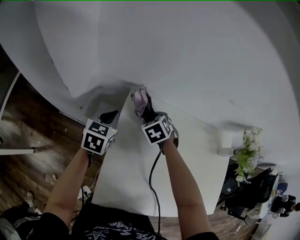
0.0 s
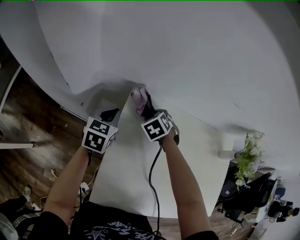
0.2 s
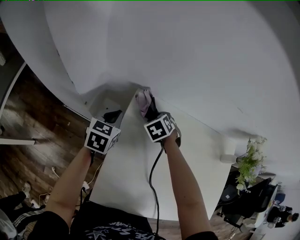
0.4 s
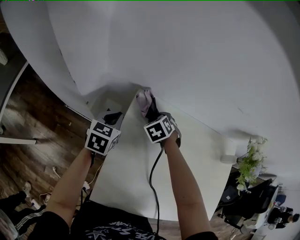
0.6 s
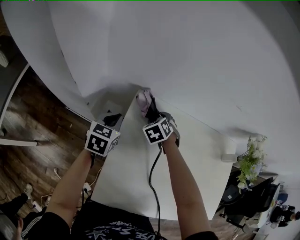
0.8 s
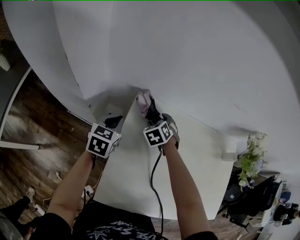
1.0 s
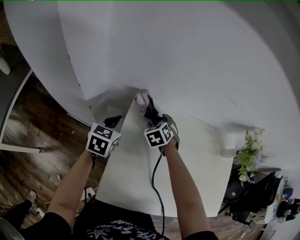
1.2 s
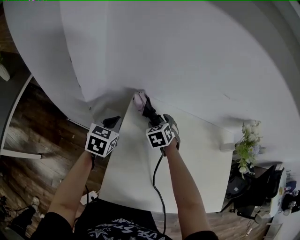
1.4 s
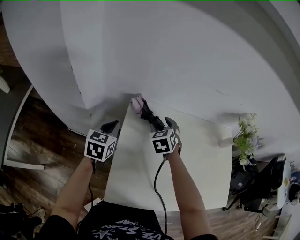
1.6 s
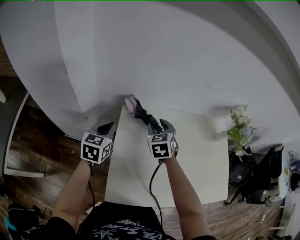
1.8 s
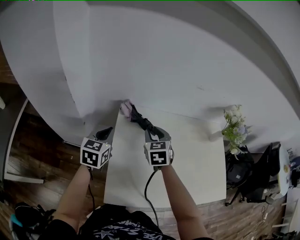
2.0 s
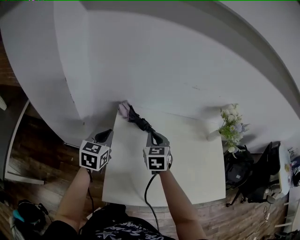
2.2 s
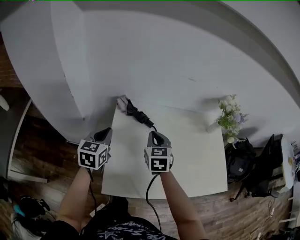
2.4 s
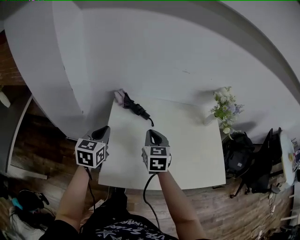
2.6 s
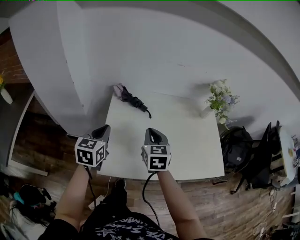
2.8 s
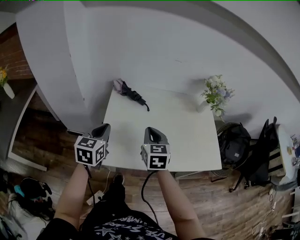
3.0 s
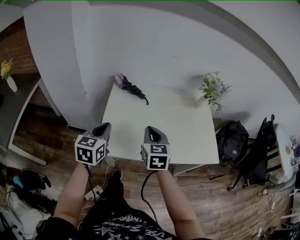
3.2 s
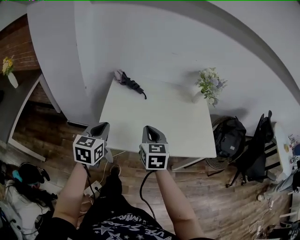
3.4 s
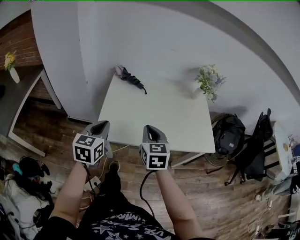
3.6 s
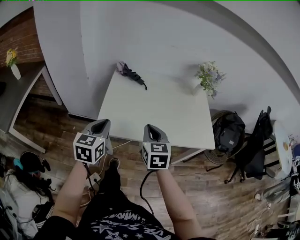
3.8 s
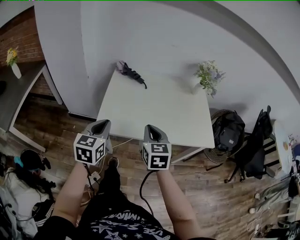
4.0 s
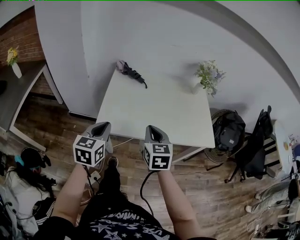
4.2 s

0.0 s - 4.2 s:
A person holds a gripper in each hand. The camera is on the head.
0.0 s - 1.4 s: The right gripper opens. The left gripper moves some 5 cm.
1.4 s - 2.8 s: Both grippers move backward, upward and to the right, some 25 cm. The right gripper turns by roughly 40 degrees, and closes its fingers.
2.8 s - 4.2 s: The two grippers go some 20 cm backward.

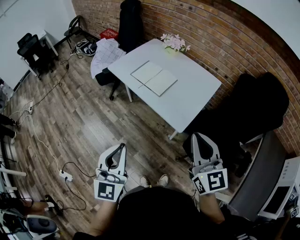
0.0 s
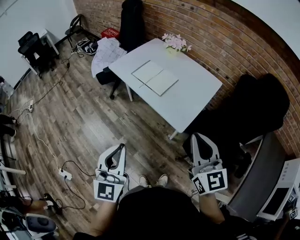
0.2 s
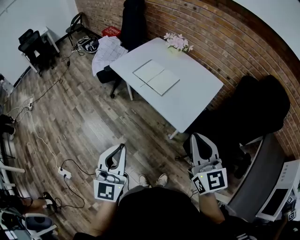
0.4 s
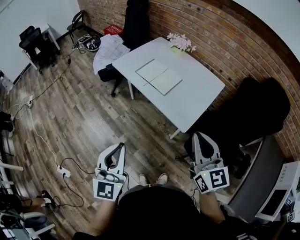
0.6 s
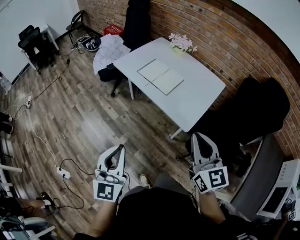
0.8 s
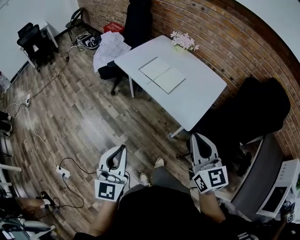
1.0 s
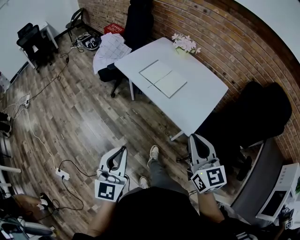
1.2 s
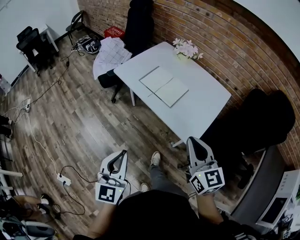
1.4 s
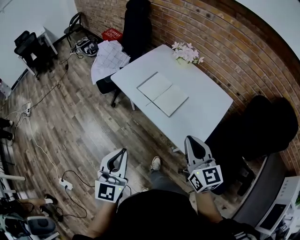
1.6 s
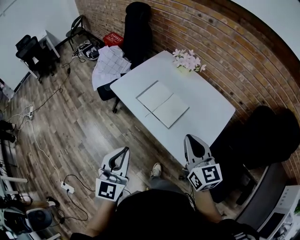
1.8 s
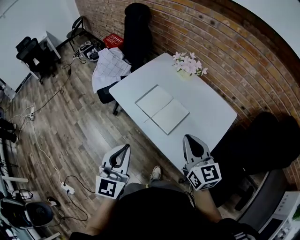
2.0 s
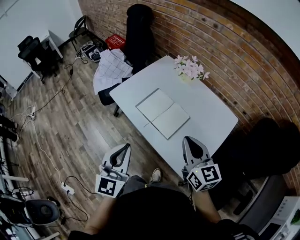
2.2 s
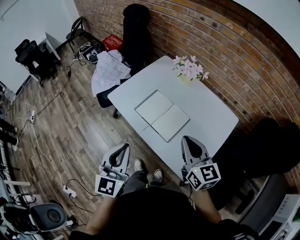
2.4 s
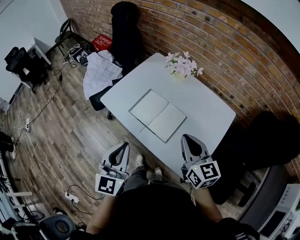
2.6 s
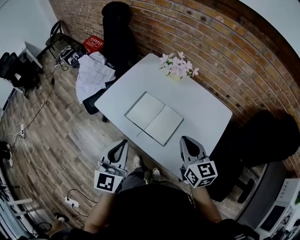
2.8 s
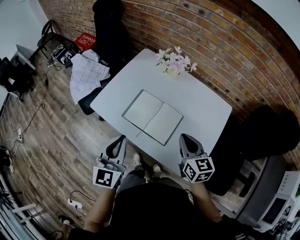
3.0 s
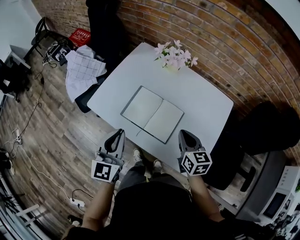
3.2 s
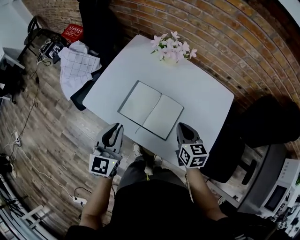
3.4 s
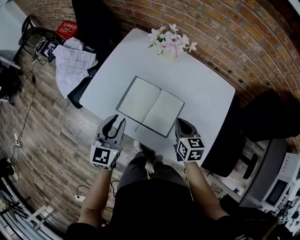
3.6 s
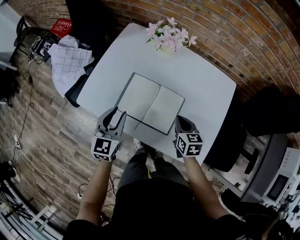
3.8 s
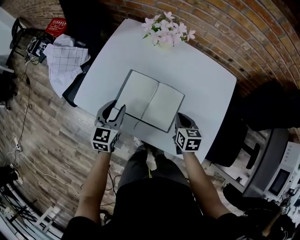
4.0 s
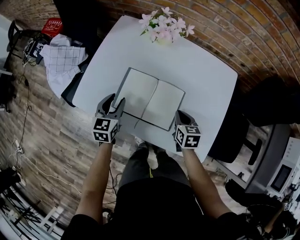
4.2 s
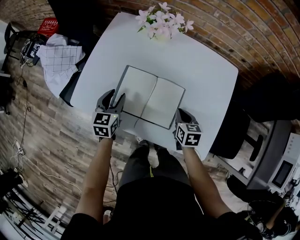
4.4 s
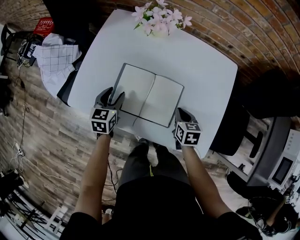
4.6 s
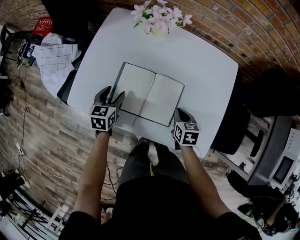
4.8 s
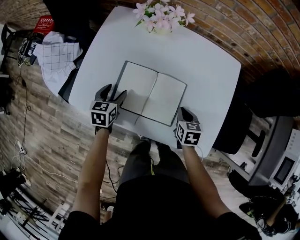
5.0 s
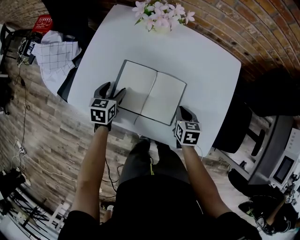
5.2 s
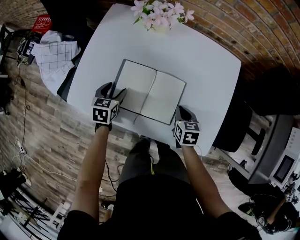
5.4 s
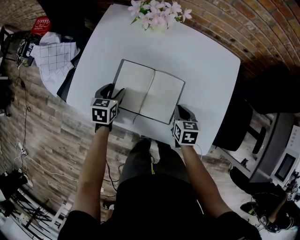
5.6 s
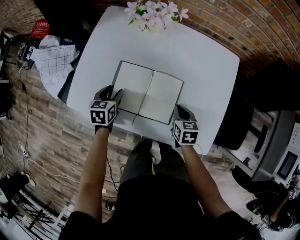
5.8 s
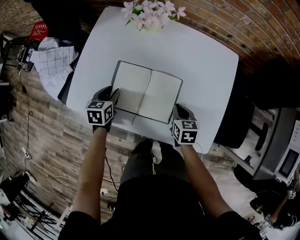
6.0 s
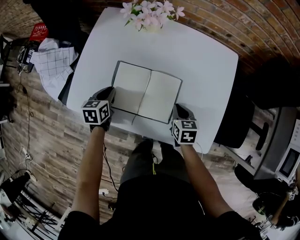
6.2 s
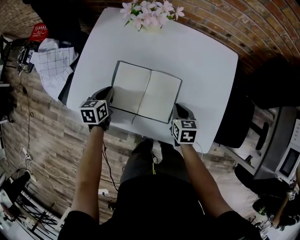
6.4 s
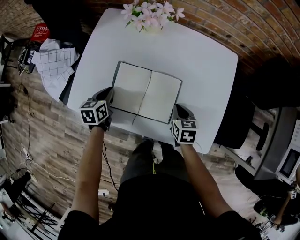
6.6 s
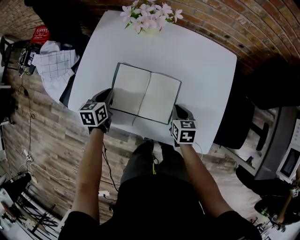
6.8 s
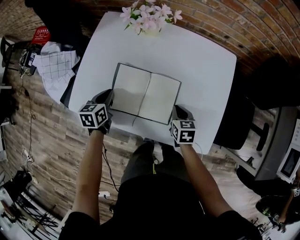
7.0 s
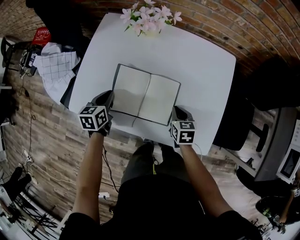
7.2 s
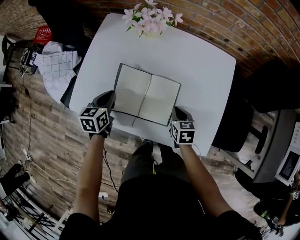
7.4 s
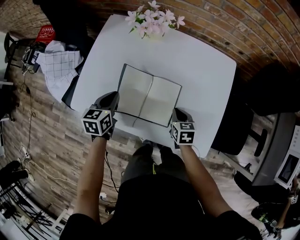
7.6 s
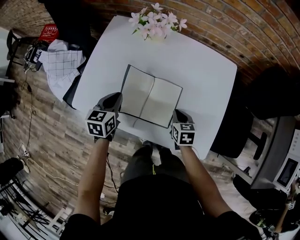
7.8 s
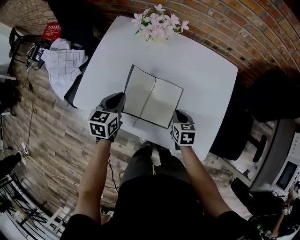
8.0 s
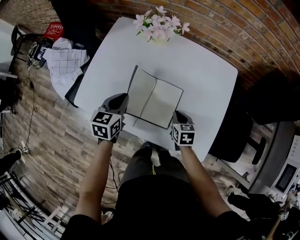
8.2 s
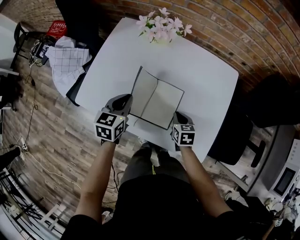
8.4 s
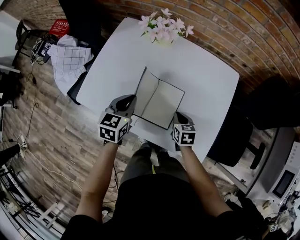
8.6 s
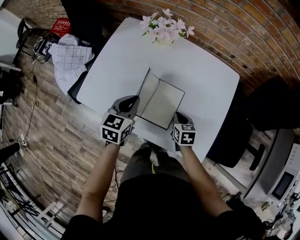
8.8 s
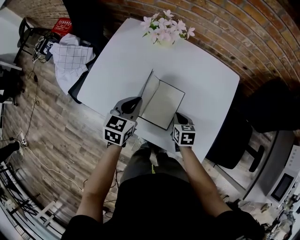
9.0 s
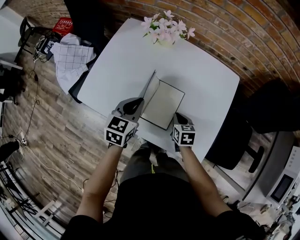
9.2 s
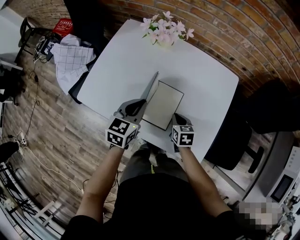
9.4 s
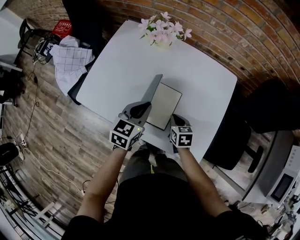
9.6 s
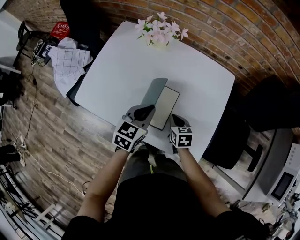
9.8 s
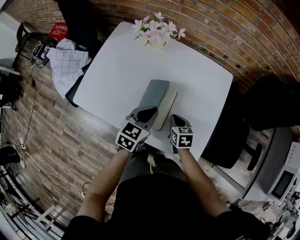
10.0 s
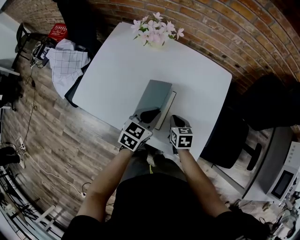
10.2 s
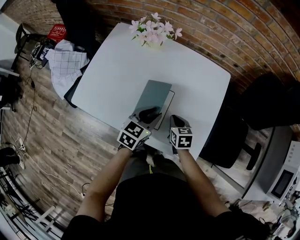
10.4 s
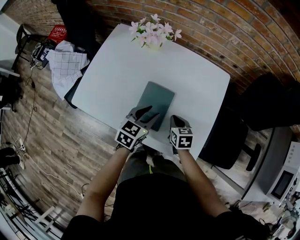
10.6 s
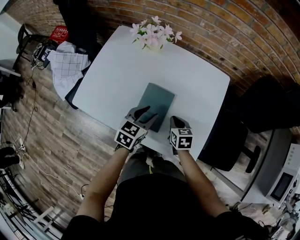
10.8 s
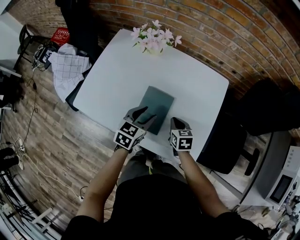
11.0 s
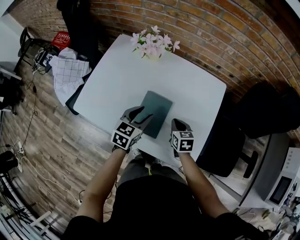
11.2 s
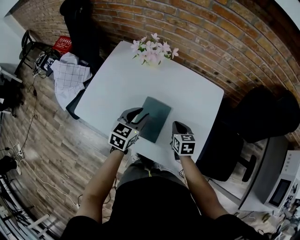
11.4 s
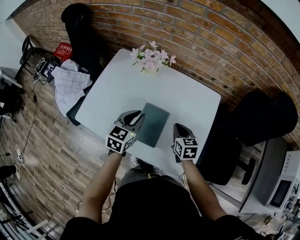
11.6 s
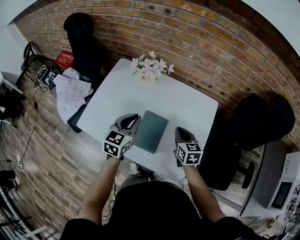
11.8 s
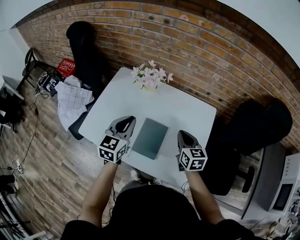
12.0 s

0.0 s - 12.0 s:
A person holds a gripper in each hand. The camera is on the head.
0.0 s - 1.6 s: Both grippers move forward and to the left, about 15 cm.
1.6 s - 3.0 s: The right gripper heads forward and downward, covering about 25 cm, and changes its angle by roughly 20 degrees; the left gripper shifts approximately 30 cm forward.
3.0 s - 4.4 s: The right gripper is displaced downward by roughly 20 cm, and turns by roughly 30 degrees. The left gripper is displaced downward and forward by roughly 30 cm, swivels about 30 degrees, and opens.
4.4 s - 6.0 s: The left gripper heads downward, covering about 5 cm, and opens, then closes once more.
6.0 s - 7.6 s: The left gripper travels upward by approximately 10 cm, and closes up.
7.6 s - 9.0 s: The left gripper heads to the right and upward, covering some 10 cm.
9.0 s - 10.4 s: The left gripper goes some 15 cm to the right.
10.4 s - 12.0 s: The left gripper is displaced upward and to the left by approximately 20 cm, and rotates roughly 30 degrees. Meanwhile the right gripper heads upward, covering roughly 20 cm, and turns by roughly 20 degrees.

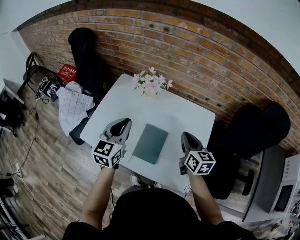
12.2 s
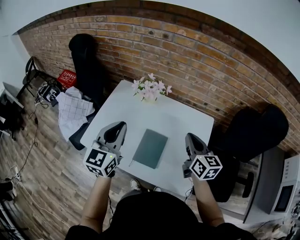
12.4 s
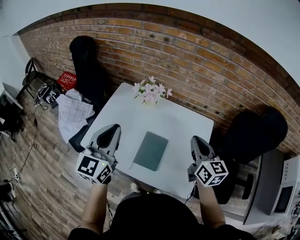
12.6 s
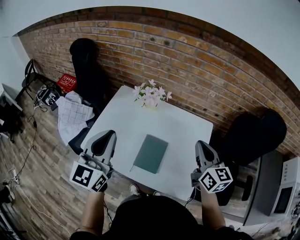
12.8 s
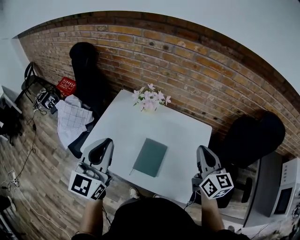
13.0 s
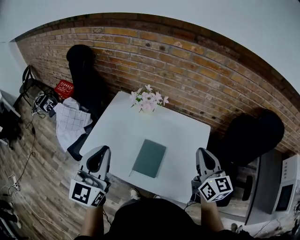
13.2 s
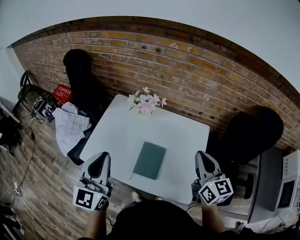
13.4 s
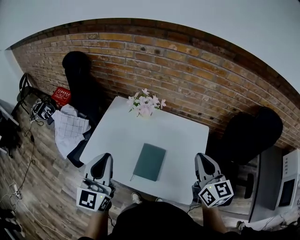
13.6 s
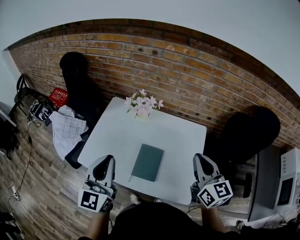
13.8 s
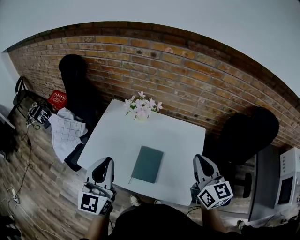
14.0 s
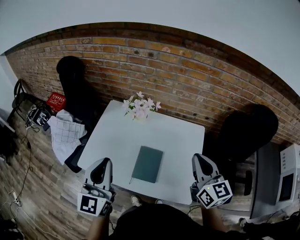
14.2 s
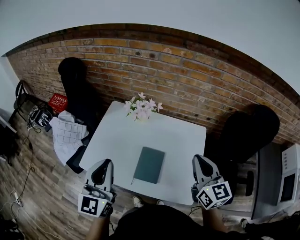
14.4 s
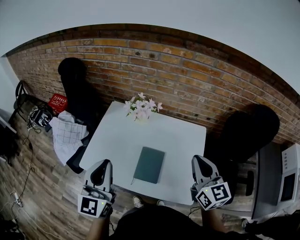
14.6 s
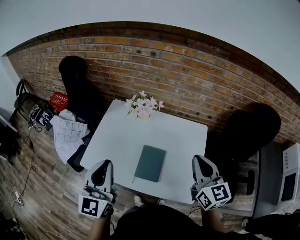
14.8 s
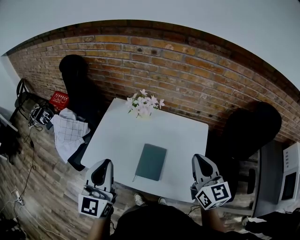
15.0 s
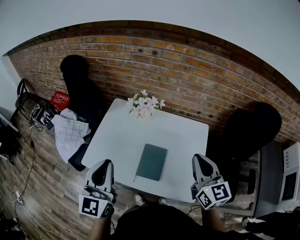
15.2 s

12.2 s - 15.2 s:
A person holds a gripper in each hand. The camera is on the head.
12.2 s - 13.8 s: Both grippers travel together upward and backward, some 15 cm.
13.8 s - 15.2 s: The grippers stay close to where they were, moving slightly.

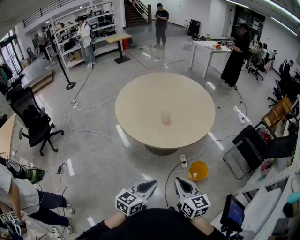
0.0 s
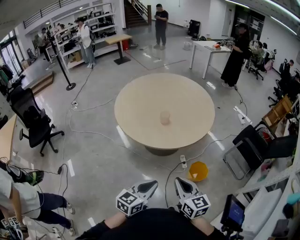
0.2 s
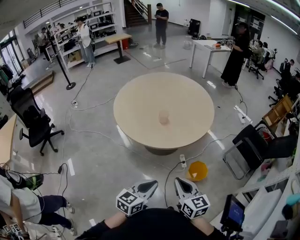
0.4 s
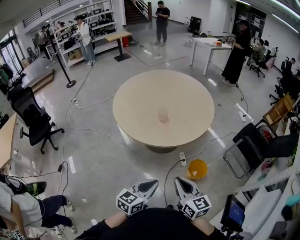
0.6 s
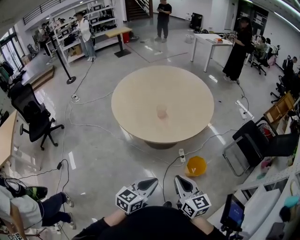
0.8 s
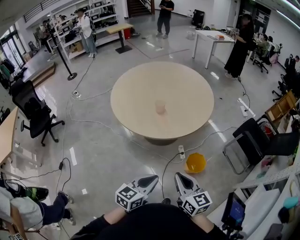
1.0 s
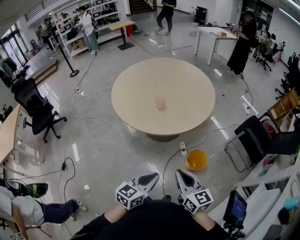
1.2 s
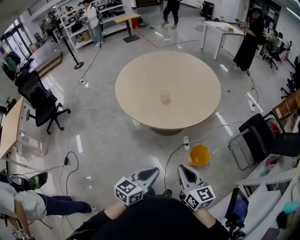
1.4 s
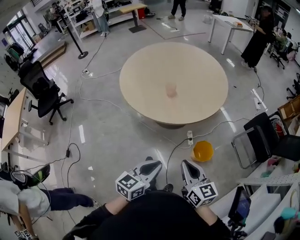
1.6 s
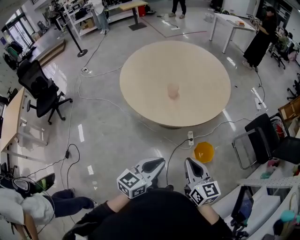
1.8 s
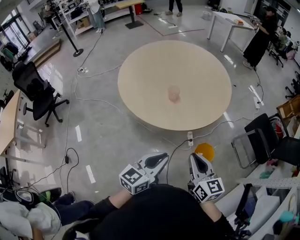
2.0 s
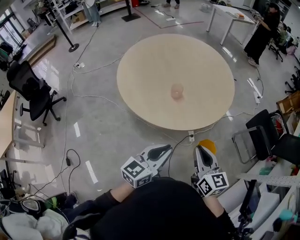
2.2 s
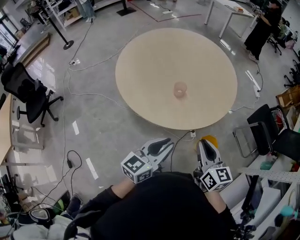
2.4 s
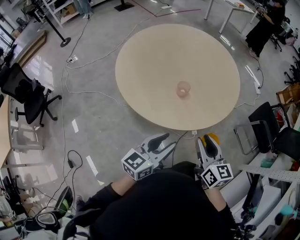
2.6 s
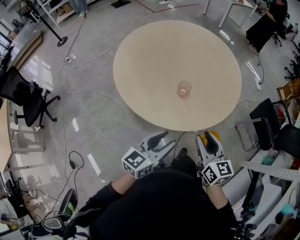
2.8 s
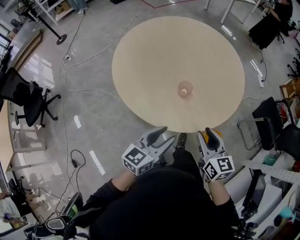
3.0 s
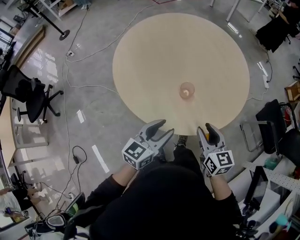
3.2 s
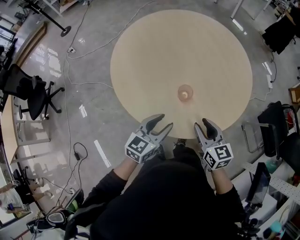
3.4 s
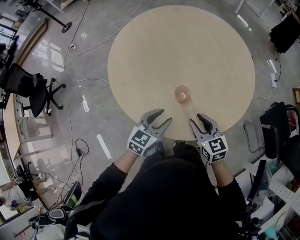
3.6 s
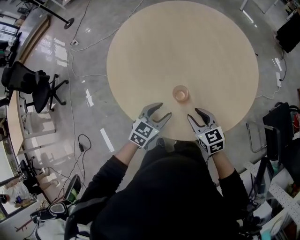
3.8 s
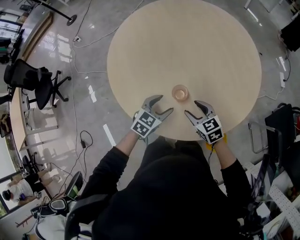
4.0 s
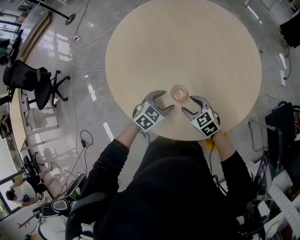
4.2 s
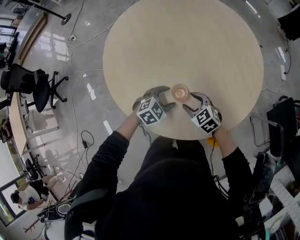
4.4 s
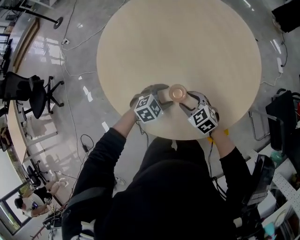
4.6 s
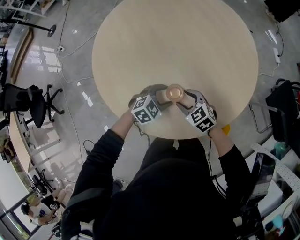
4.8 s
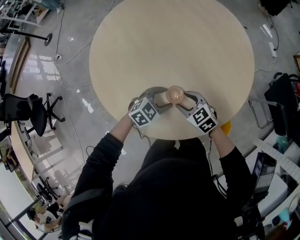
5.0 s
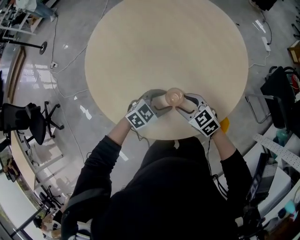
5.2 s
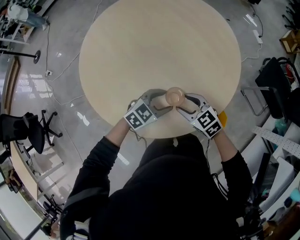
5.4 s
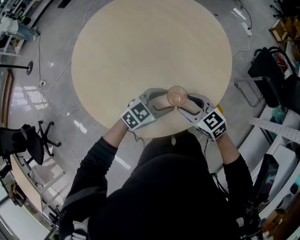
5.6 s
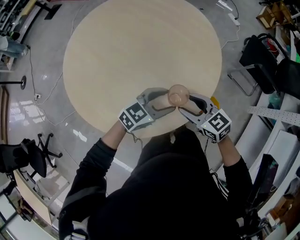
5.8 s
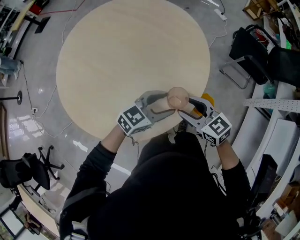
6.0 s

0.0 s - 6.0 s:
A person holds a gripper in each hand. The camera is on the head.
0.0 s - 1.6 s: The two grippers go about 10 cm to the right.
1.6 s - 3.0 s: The grippers both shift forward and to the left by about 30 cm. The left gripper opens, while the right gripper opens its fingers.
3.0 s - 4.4 s: Both grippers move forward and downward, roughly 30 cm. The right gripper turns by approximately 50 degrees, while the left gripper tilts its fingers about 40 degrees downward, and opens up.
4.4 s - 6.0 s: The left gripper changes place by some 20 cm, and tilts its fingers roughly 30 degrees upward. The right gripper ends up approximately 20 cm from where it was, and swivels about 50 degrees.
